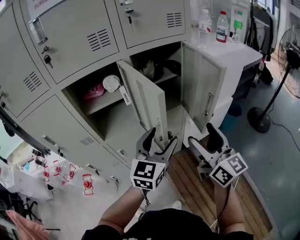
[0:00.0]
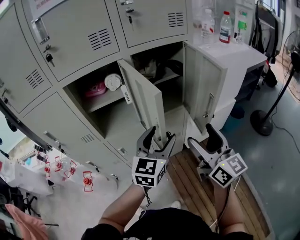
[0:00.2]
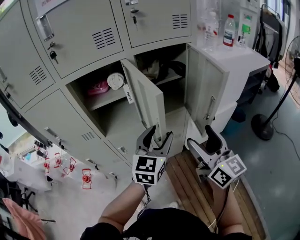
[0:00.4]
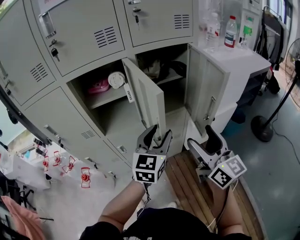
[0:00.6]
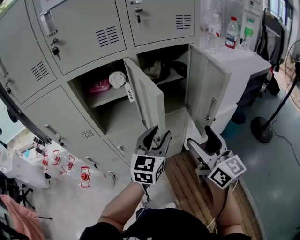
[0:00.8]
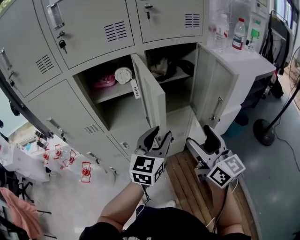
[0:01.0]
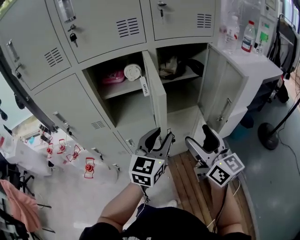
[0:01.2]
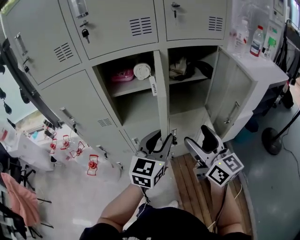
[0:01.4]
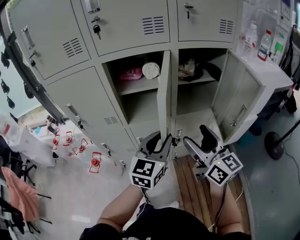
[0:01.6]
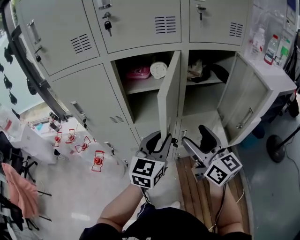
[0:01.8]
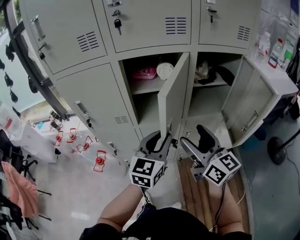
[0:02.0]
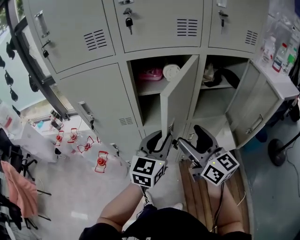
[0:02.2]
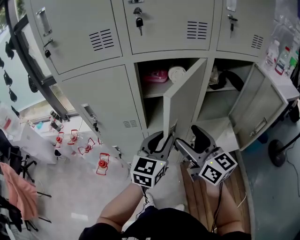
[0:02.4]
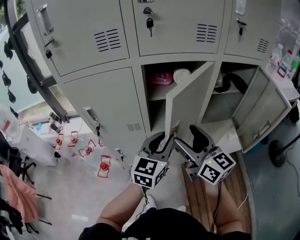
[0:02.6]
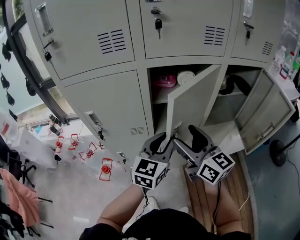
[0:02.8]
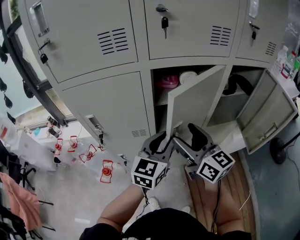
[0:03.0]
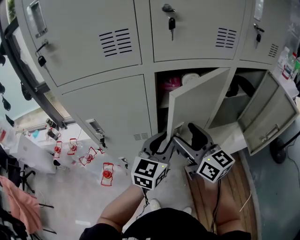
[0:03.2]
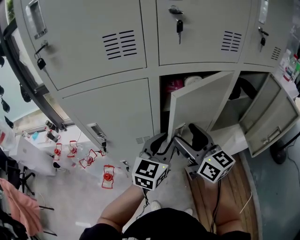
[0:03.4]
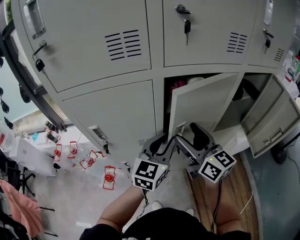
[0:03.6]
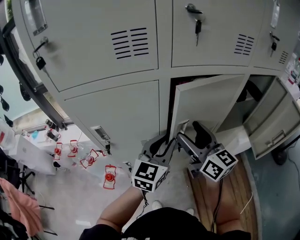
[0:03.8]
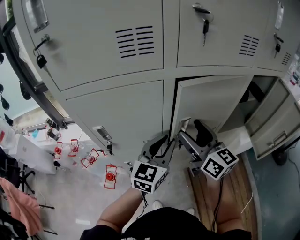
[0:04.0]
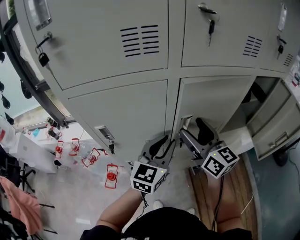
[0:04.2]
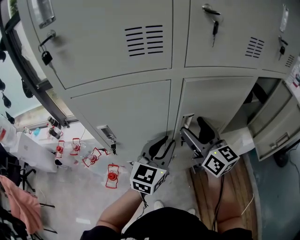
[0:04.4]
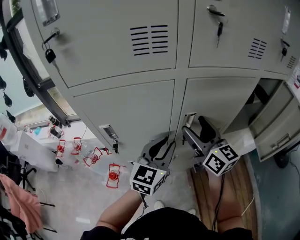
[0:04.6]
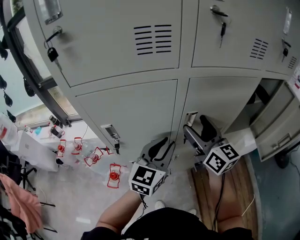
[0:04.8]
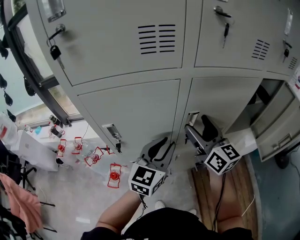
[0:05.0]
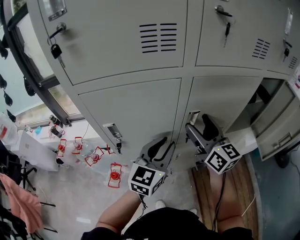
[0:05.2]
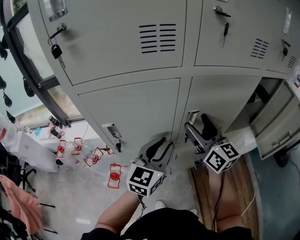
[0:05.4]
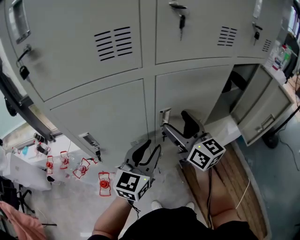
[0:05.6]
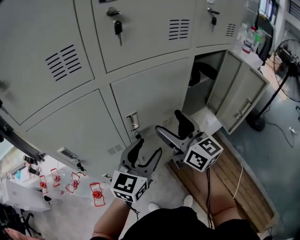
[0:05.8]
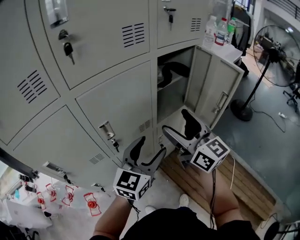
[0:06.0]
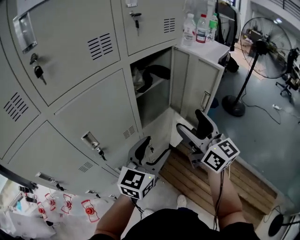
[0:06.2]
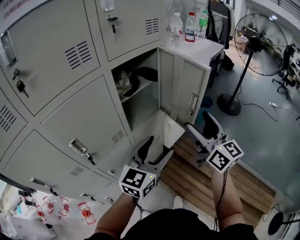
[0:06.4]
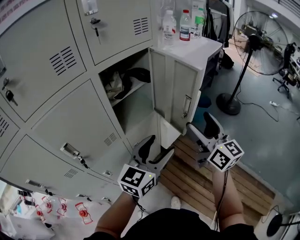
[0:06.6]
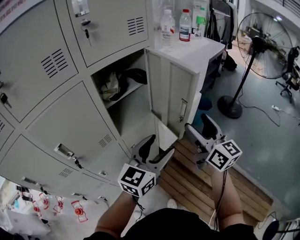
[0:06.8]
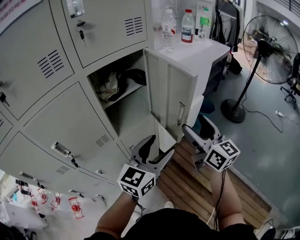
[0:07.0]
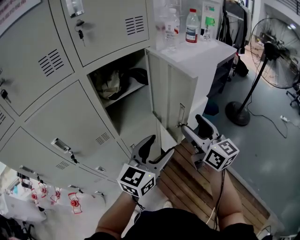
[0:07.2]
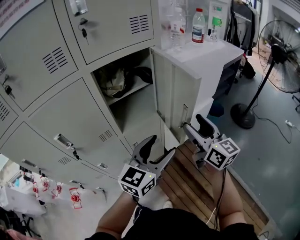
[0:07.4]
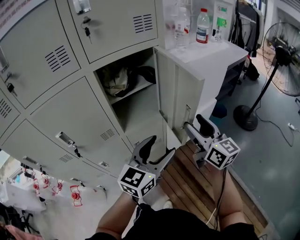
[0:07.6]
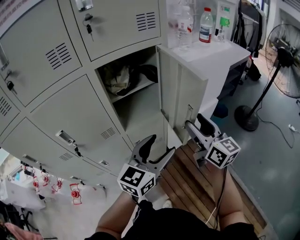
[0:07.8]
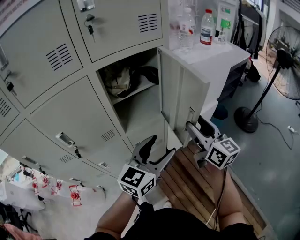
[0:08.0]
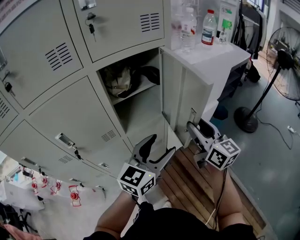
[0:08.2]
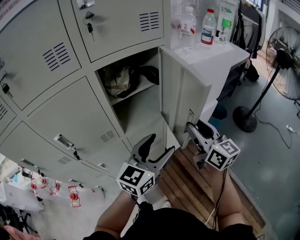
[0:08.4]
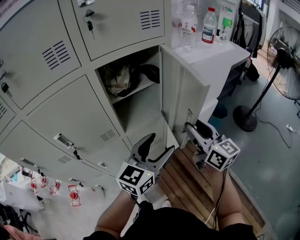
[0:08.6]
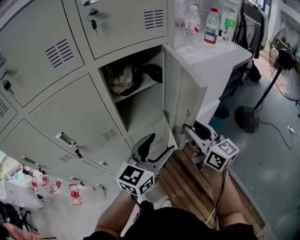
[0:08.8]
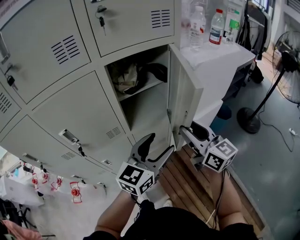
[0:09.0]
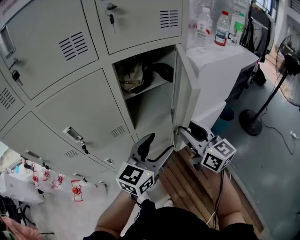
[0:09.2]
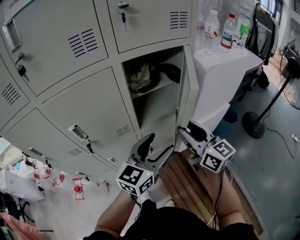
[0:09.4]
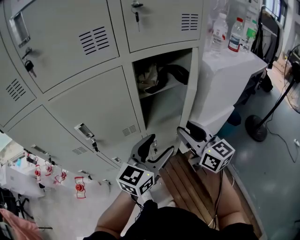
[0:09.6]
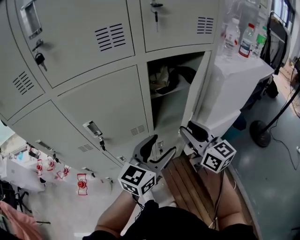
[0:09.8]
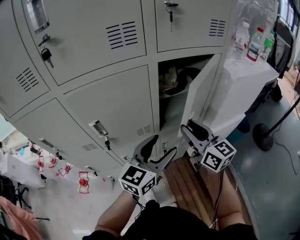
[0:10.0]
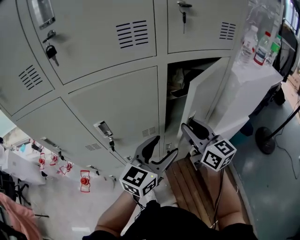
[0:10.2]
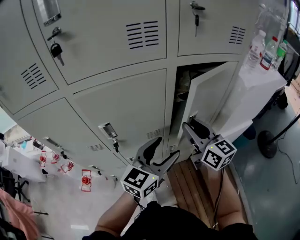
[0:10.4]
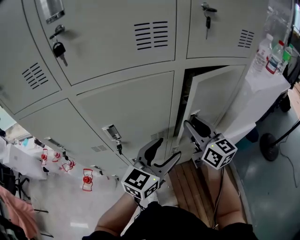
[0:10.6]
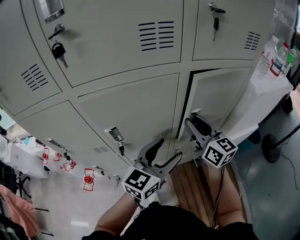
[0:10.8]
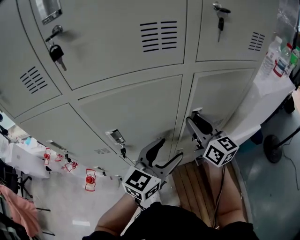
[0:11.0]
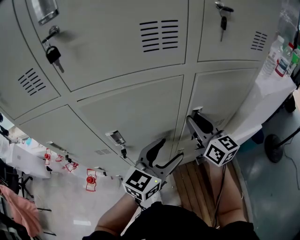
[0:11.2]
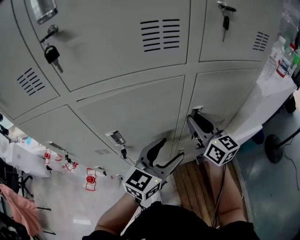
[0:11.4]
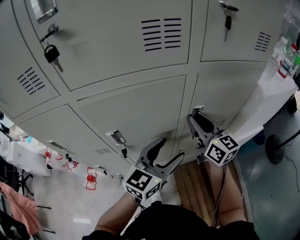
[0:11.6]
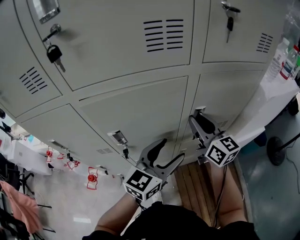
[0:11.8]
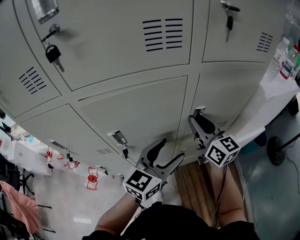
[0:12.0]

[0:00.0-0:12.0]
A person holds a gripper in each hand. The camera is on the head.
0.0 to 1.6 s: The grippers both shift to the left by some 10 cm. The left gripper closes.
1.6 to 3.0 s: The two grippers go about 20 cm to the left and forward.
3.0 to 4.4 s: The right gripper shifts some 10 cm forward; the left gripper travels to the left by approximately 10 cm.
4.4 to 6.0 s: The two grippers go some 20 cm to the right. The right gripper changes its angle by approximately 20 degrees. The left gripper changes its angle by roughly 30 degrees, and opens its fingers.
6.0 to 7.6 s: The right gripper heads to the right and forward, covering approximately 30 cm. The left gripper heads to the right, covering approximately 25 cm.
7.6 to 9.0 s: The right gripper travels to the left by some 5 cm. The left gripper changes place by some 5 cm.
9.0 to 10.4 s: The left gripper moves to the left, about 15 cm. The right gripper moves to the left and forward, approximately 20 cm.
10.4 to 12.0 s: The right gripper moves forward, roughly 5 cm.

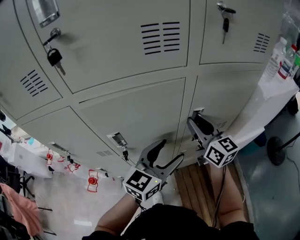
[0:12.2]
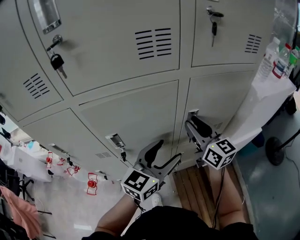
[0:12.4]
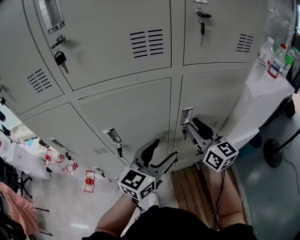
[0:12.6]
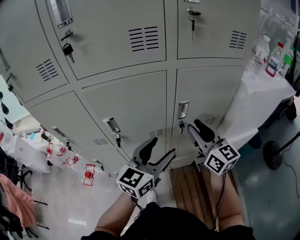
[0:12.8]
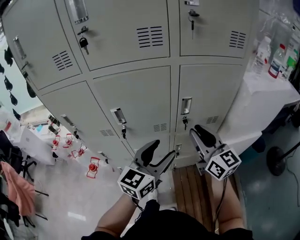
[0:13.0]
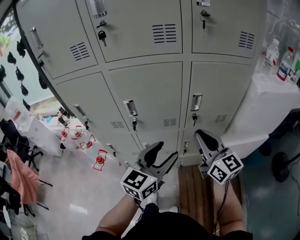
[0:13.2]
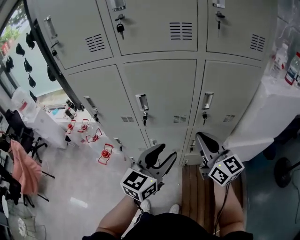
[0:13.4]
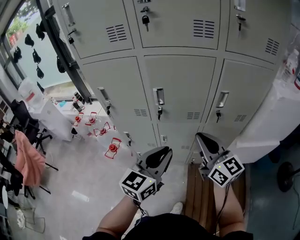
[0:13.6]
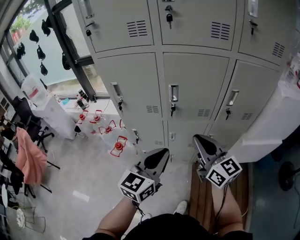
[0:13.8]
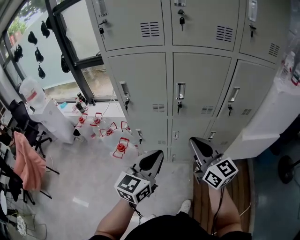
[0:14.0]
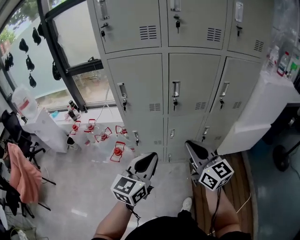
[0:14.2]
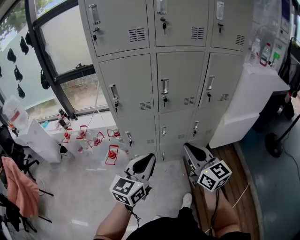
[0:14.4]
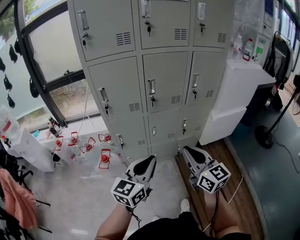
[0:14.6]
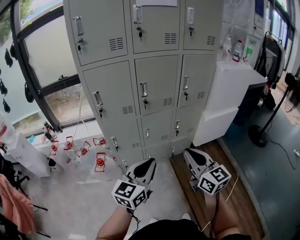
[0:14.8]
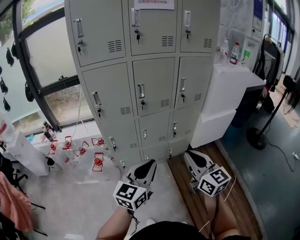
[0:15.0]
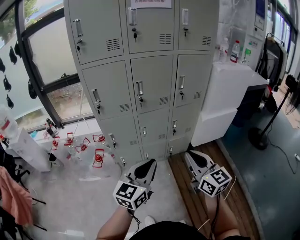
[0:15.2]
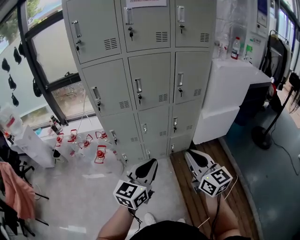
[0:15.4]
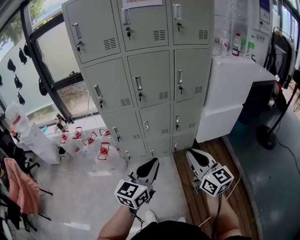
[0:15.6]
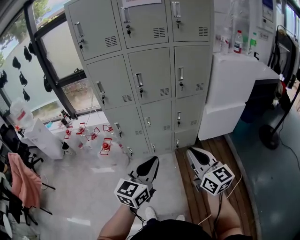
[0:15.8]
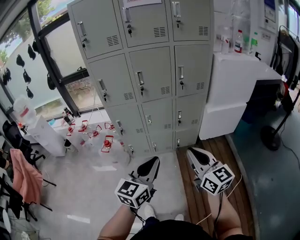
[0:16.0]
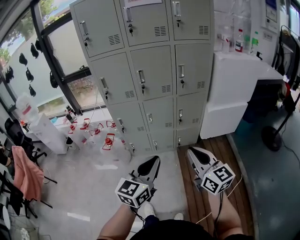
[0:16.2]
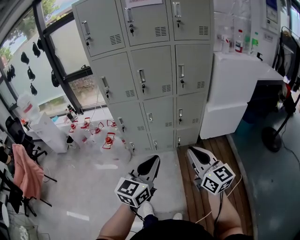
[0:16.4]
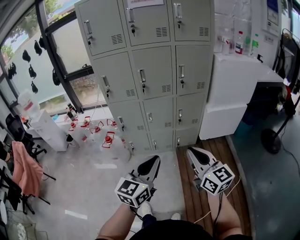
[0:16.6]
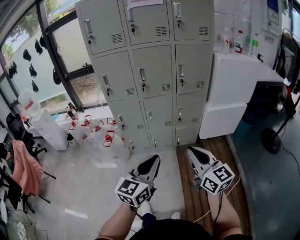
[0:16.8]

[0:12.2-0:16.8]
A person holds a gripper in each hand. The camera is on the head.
12.2 to 13.8 s: Both grippers travel together backward and to the left, about 30 cm. The right gripper swivels approximately 20 degrees. Meanwhile the left gripper swivels roughly 20 degrees, and closes its fingers.
13.8 to 15.2 s: Both grippers move backward, some 25 cm. The right gripper turns by some 20 degrees.
15.2 to 16.8 s: The grippers both shift backward and to the right by about 15 cm.

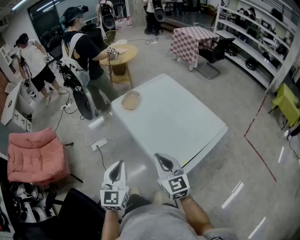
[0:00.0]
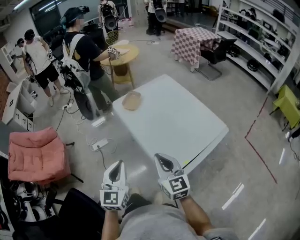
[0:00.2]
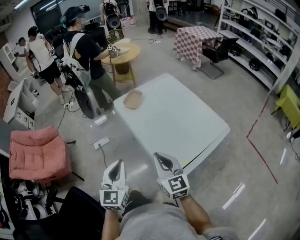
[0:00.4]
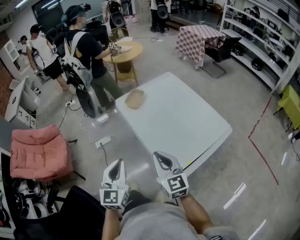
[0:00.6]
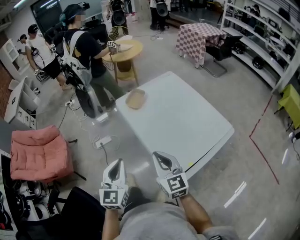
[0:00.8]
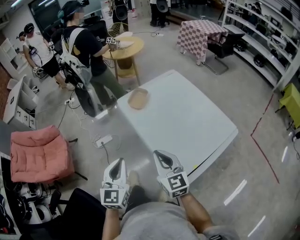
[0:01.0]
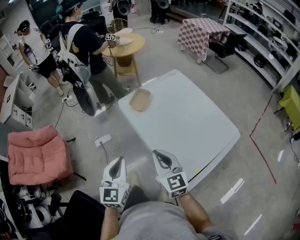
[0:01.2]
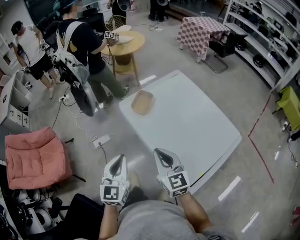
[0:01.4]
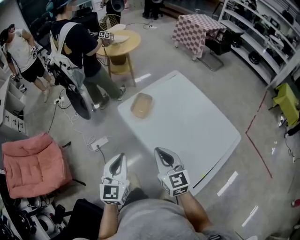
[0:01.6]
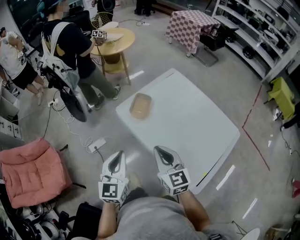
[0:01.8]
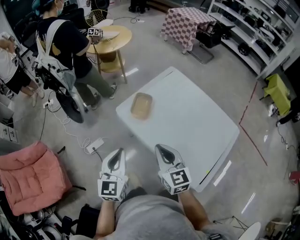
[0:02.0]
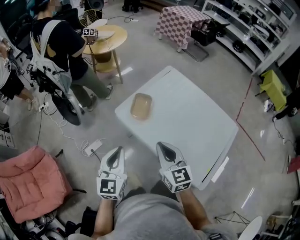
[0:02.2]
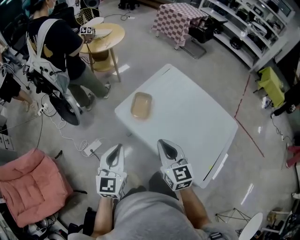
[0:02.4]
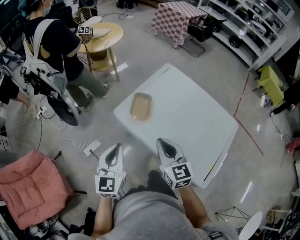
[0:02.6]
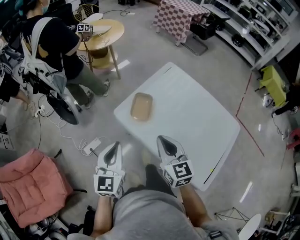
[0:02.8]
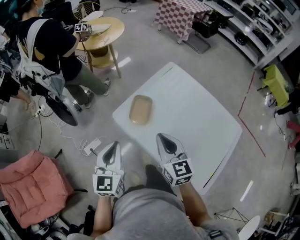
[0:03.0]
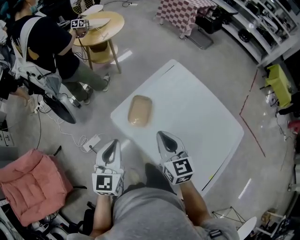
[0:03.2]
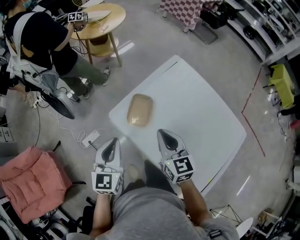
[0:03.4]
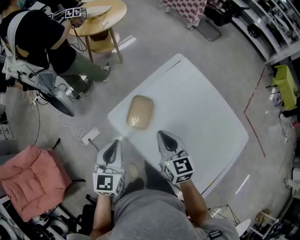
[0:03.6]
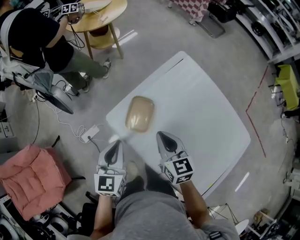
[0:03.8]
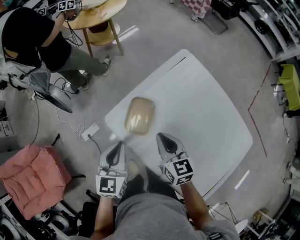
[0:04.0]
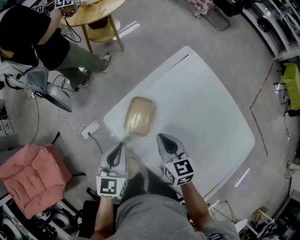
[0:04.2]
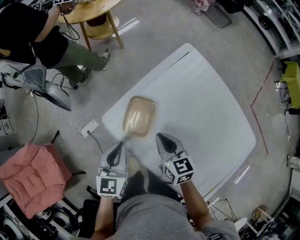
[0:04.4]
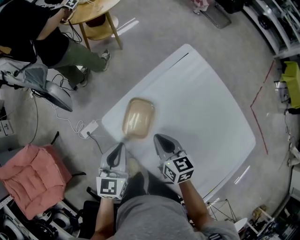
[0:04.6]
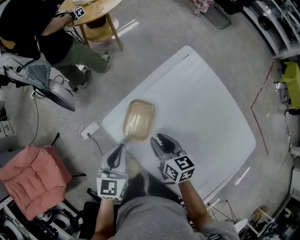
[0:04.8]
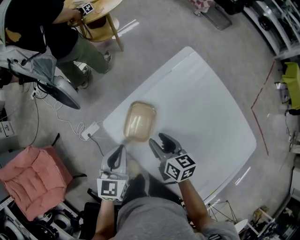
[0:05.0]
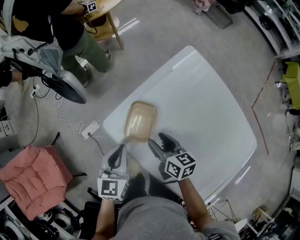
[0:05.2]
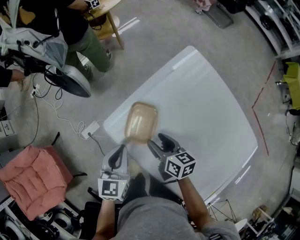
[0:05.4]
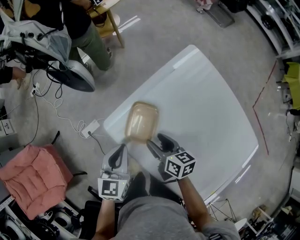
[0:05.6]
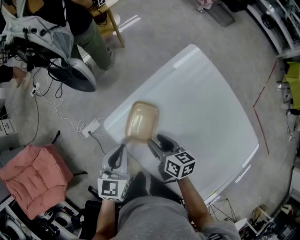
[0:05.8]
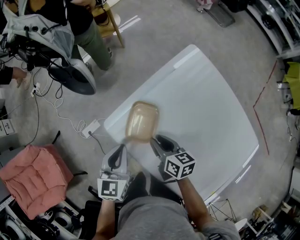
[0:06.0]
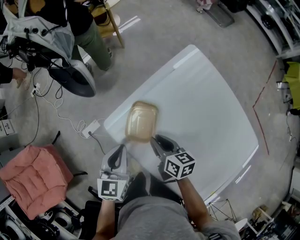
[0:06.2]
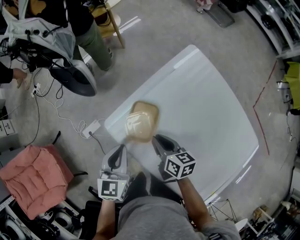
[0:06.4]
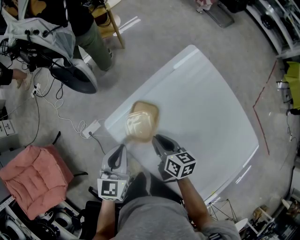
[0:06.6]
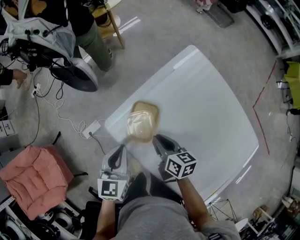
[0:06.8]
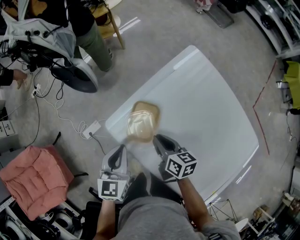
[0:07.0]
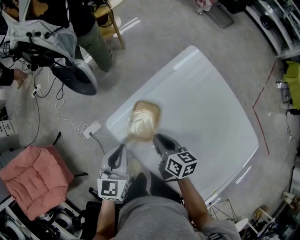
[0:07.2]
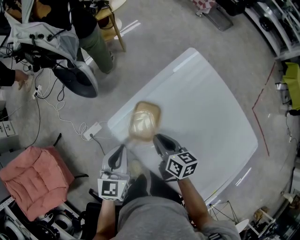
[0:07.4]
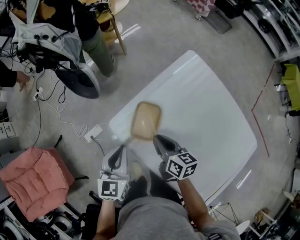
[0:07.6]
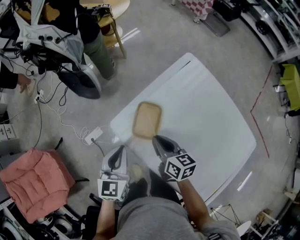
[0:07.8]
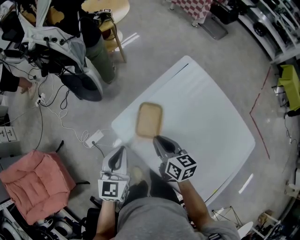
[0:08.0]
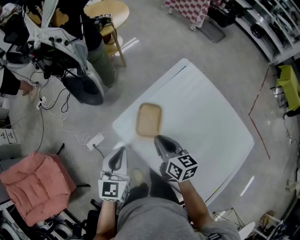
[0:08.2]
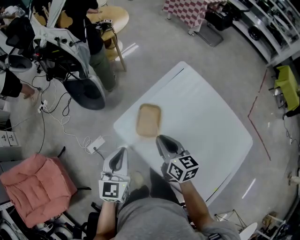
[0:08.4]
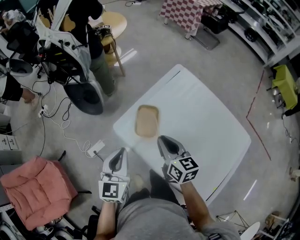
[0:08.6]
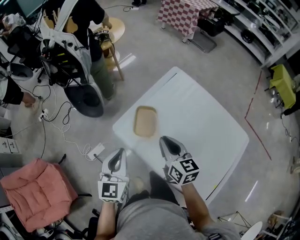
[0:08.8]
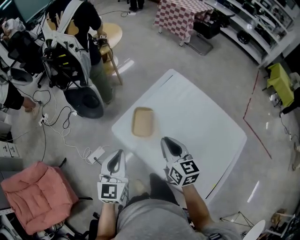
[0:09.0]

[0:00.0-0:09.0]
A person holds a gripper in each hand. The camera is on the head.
0.0 to 1.6 s: Both grippers move forward, some 20 cm.
1.6 to 3.0 s: The grippers both shift forward by some 15 cm.
3.0 to 4.4 s: The left gripper travels downward, forward and to the right by about 20 cm. Meanwhile the right gripper goes some 20 cm downward and forward, and swivels some 20 degrees.
4.4 to 6.0 s: The right gripper heads downward, covering approximately 5 cm, rotates roughly 20 degrees, and opens.
6.0 to 7.6 s: The grippers move only a little.
7.6 to 9.0 s: The two grippers go some 15 cm upward and backward. The right gripper swivels roughly 30 degrees.
